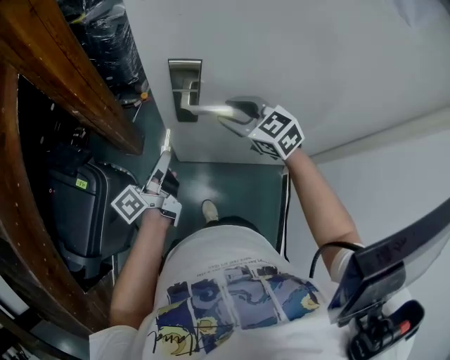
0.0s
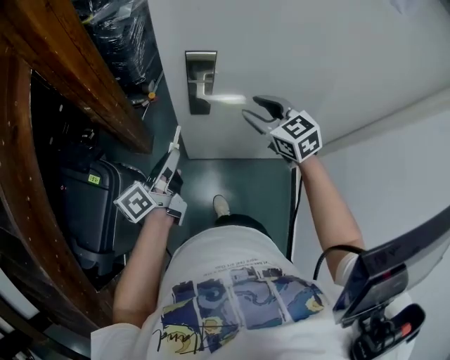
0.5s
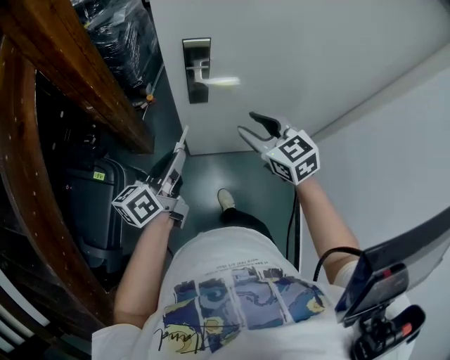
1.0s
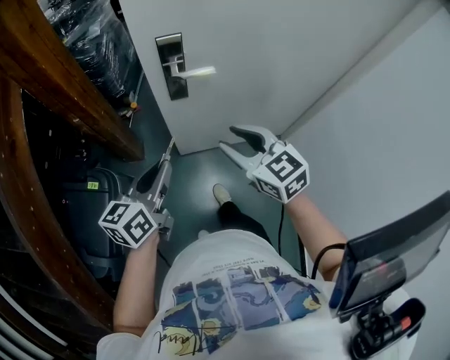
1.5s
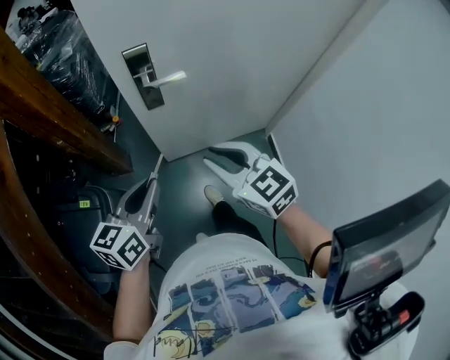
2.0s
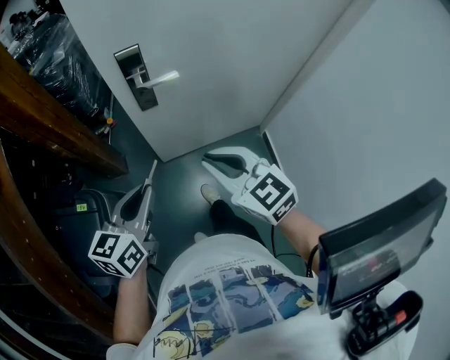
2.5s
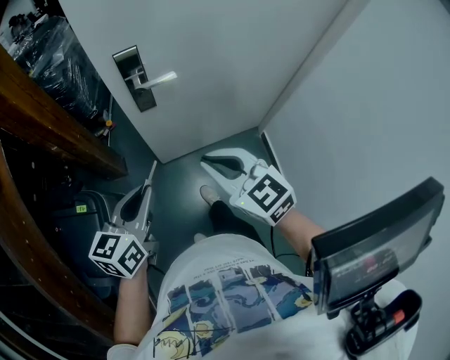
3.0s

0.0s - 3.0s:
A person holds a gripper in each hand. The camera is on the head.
0.0s - 1.5s: The right gripper moves backward, about 20 cm, and rotates about 30 degrees, while the left gripper shifts about 15 cm backward and upward, and rotates around the line of its fingers by some 40 degrees, clockwise from behind.
1.5s - 3.0s: The right gripper moves backward, roughly 5 cm, and closes up.
